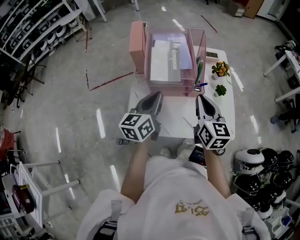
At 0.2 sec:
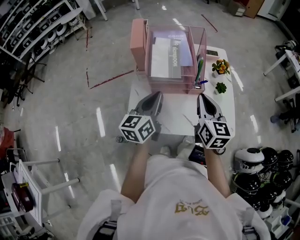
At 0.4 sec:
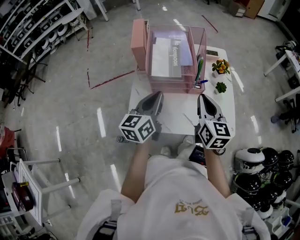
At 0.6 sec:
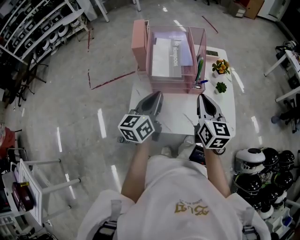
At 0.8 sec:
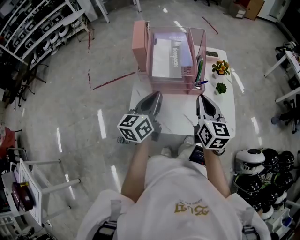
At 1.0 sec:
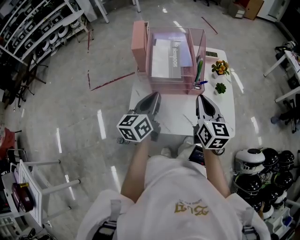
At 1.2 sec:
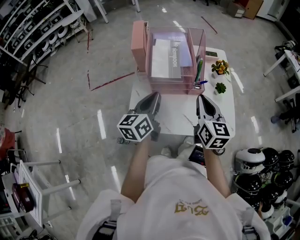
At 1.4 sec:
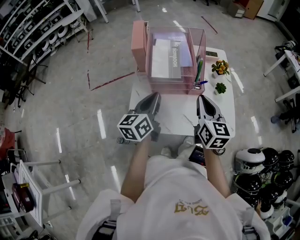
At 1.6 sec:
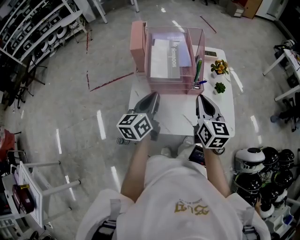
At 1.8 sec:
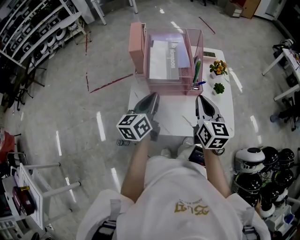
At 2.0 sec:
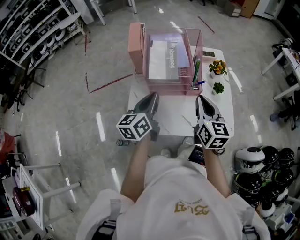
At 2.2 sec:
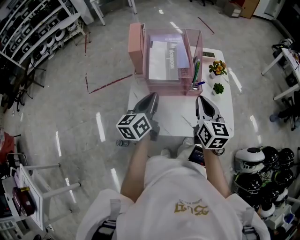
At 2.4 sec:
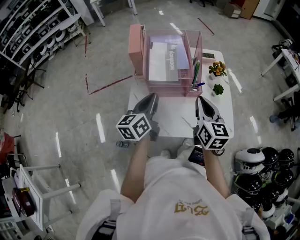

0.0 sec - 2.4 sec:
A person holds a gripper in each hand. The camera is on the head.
0.0 sec - 2.4 sec: The grippers move only a little.

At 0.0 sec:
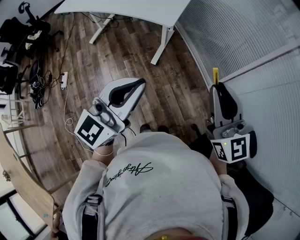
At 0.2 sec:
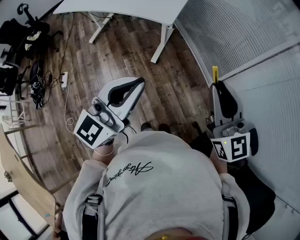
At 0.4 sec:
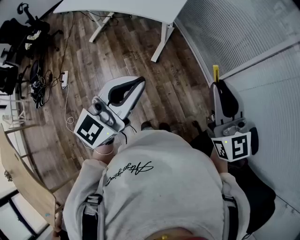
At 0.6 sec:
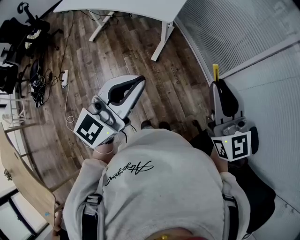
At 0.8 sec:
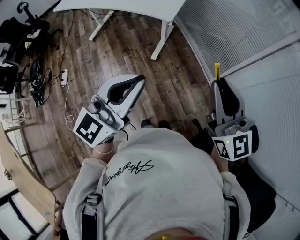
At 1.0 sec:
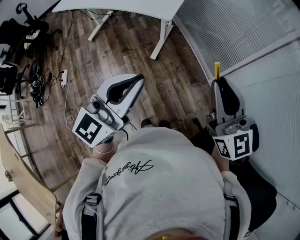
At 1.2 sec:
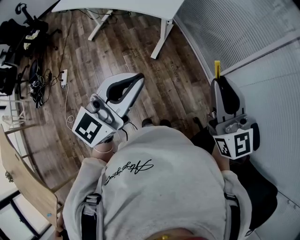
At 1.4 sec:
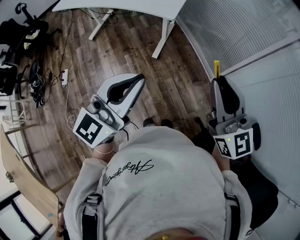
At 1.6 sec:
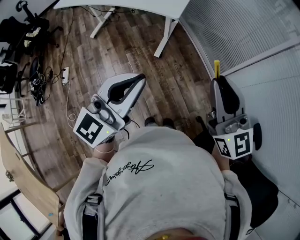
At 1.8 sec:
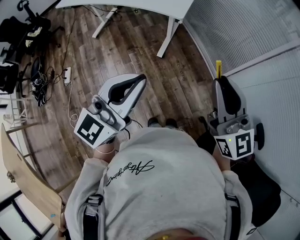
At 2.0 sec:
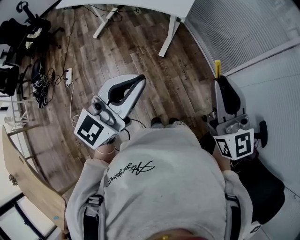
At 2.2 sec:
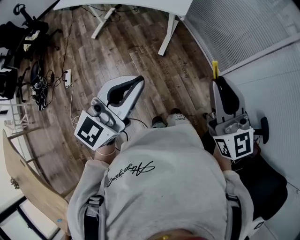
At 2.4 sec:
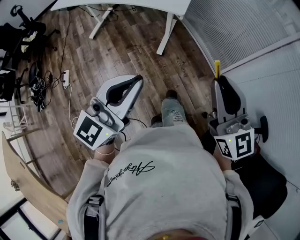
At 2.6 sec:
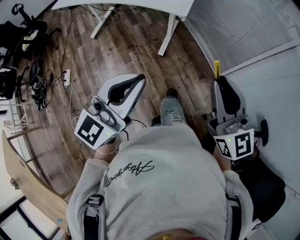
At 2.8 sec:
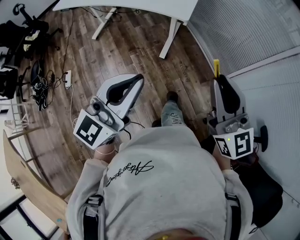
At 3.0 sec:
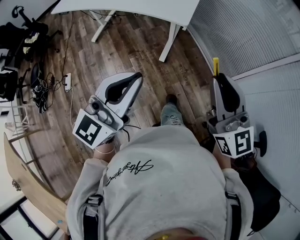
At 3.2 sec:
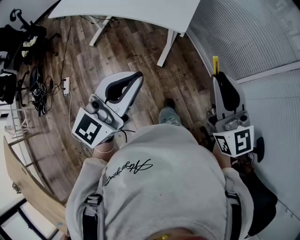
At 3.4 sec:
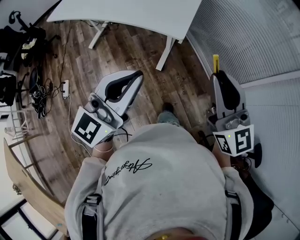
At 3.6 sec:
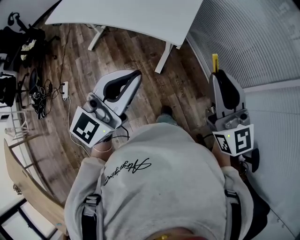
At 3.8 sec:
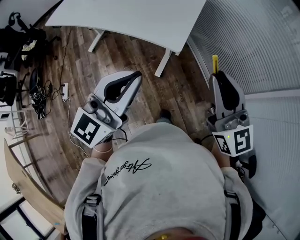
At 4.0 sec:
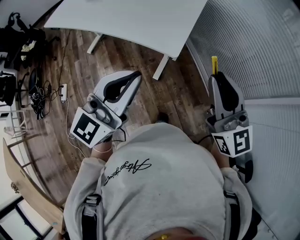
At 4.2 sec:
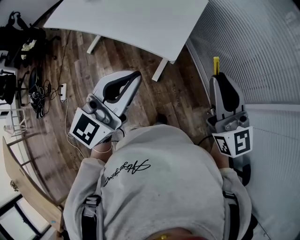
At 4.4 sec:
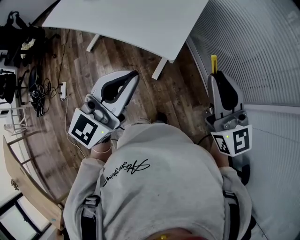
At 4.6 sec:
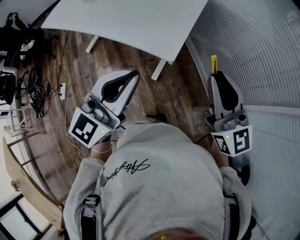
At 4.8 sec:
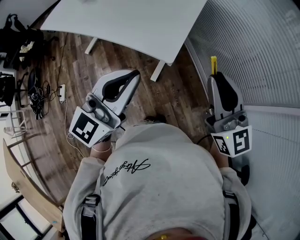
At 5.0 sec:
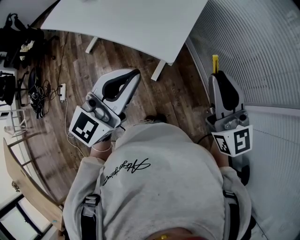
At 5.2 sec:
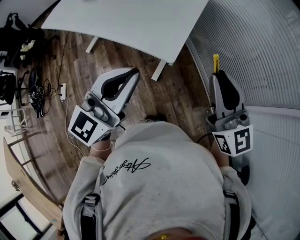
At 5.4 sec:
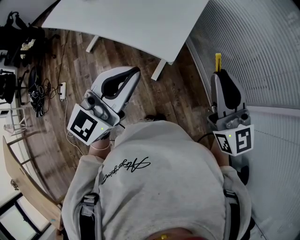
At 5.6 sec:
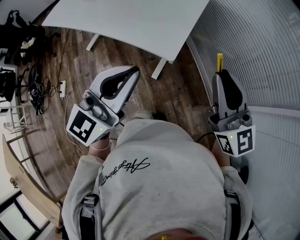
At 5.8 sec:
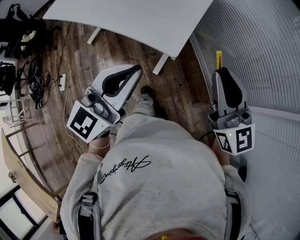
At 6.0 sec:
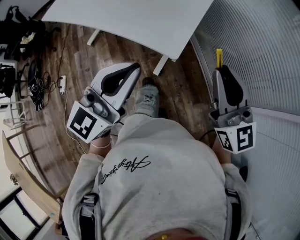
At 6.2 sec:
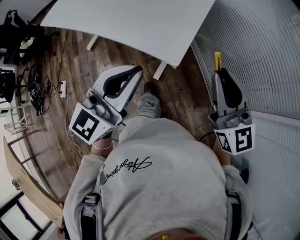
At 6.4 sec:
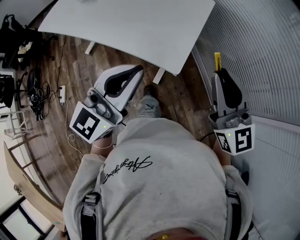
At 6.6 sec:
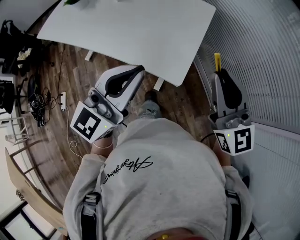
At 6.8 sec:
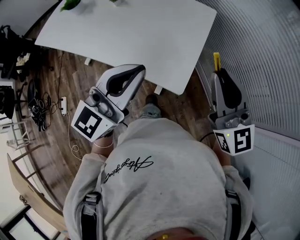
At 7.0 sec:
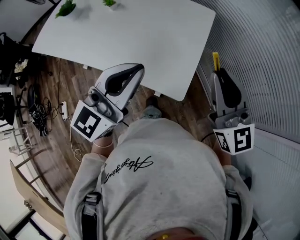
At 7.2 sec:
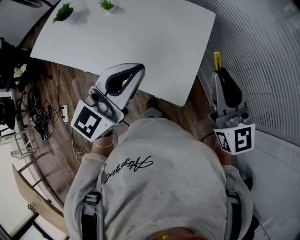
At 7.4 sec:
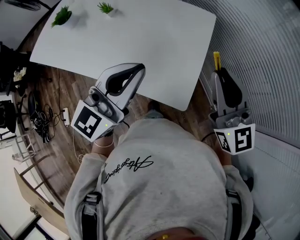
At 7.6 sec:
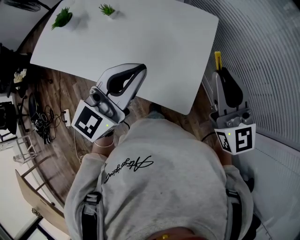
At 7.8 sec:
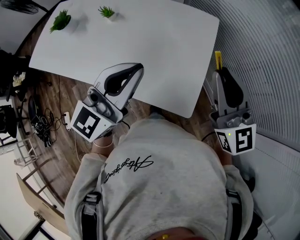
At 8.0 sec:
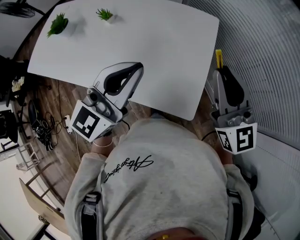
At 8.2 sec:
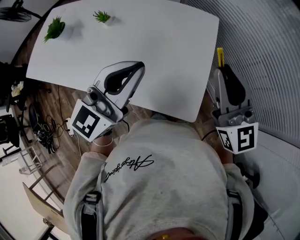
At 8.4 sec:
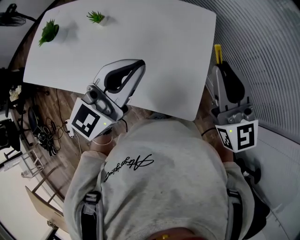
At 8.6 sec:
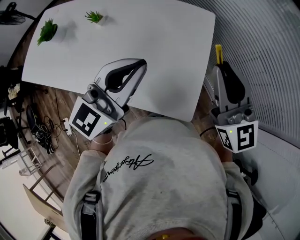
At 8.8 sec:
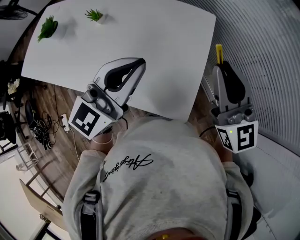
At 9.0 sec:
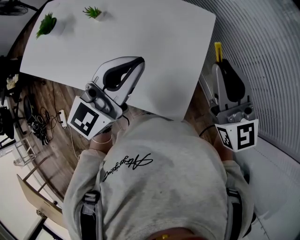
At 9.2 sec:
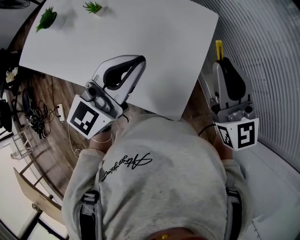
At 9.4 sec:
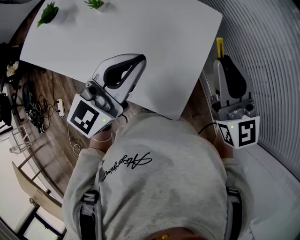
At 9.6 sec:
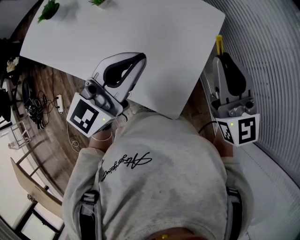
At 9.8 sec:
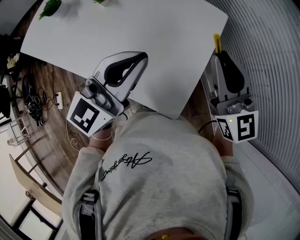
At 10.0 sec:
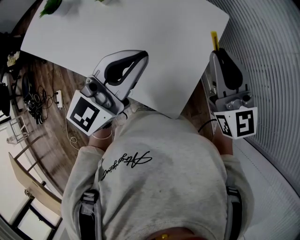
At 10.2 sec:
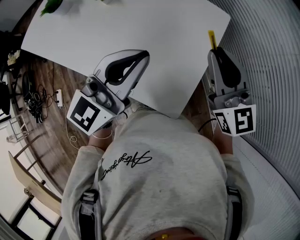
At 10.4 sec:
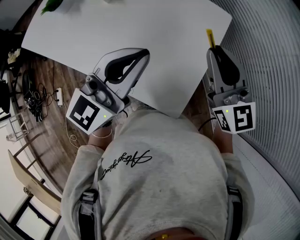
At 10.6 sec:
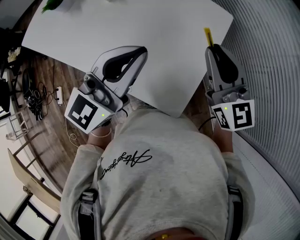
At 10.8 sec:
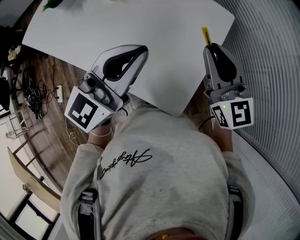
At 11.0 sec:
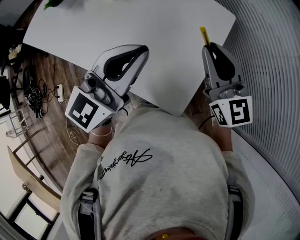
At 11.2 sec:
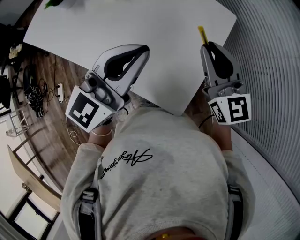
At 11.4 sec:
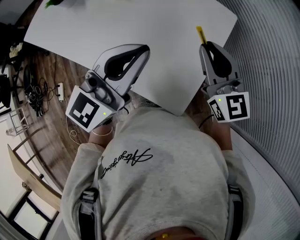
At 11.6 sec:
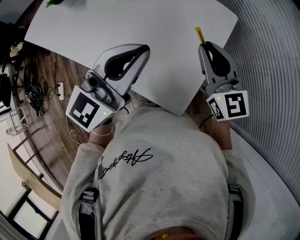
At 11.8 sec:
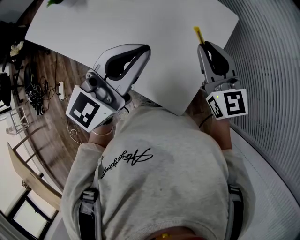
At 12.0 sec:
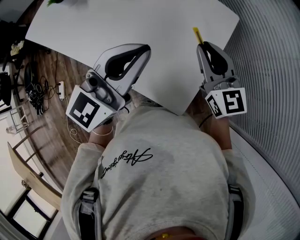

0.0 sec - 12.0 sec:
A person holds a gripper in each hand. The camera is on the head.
0.0 sec - 1.6 sec: The grippers make only small movements.
1.6 sec - 3.0 sec: The grippers both shift forward and to the left by roughly 10 cm.
3.0 sec - 4.4 sec: Both grippers travel together forward, some 25 cm.
4.4 sec - 6.0 sec: The right gripper moves approximately 5 cm.
6.0 sec - 7.6 sec: The left gripper is displaced forward by approximately 25 cm, while the right gripper travels forward and to the left by some 25 cm.
7.6 sec - 9.0 sec: Both grippers travel together forward, about 10 cm.
9.0 sec - 10.4 sec: The right gripper shifts by about 5 cm.
10.4 sec - 12.0 sec: The right gripper goes some 10 cm downward.

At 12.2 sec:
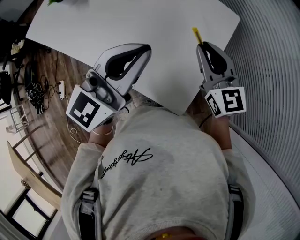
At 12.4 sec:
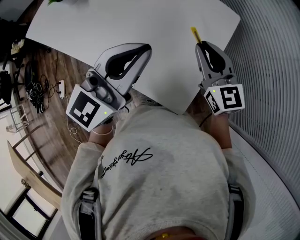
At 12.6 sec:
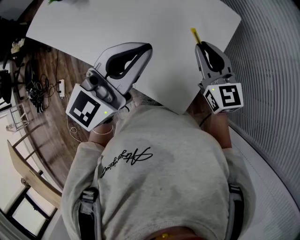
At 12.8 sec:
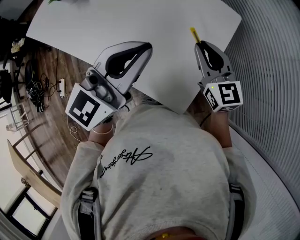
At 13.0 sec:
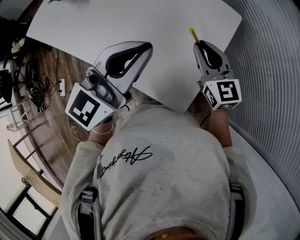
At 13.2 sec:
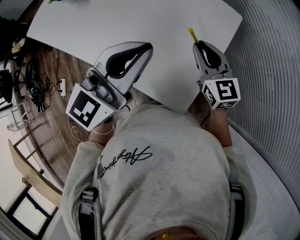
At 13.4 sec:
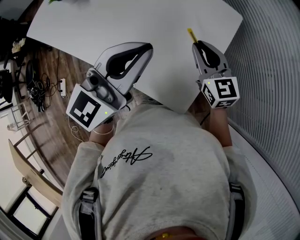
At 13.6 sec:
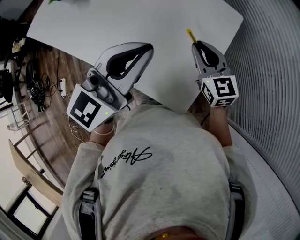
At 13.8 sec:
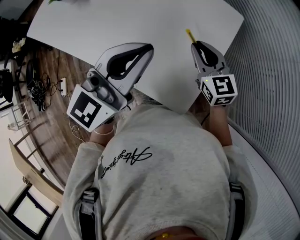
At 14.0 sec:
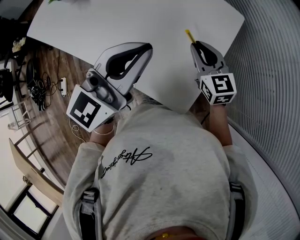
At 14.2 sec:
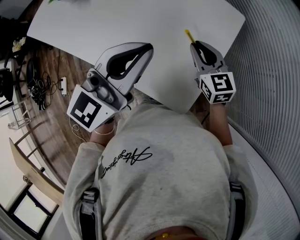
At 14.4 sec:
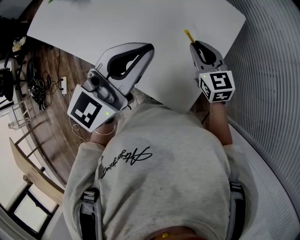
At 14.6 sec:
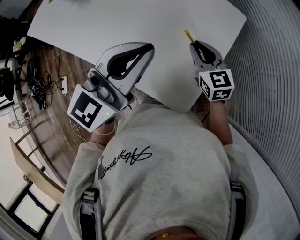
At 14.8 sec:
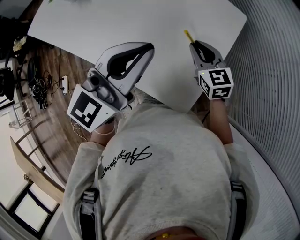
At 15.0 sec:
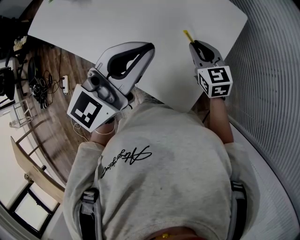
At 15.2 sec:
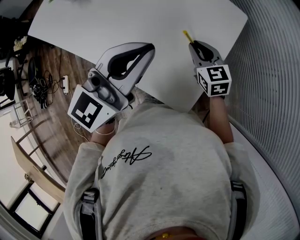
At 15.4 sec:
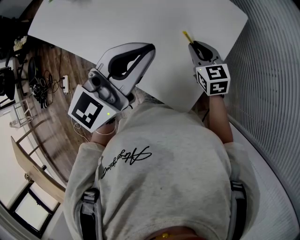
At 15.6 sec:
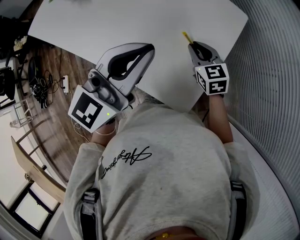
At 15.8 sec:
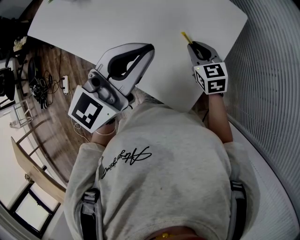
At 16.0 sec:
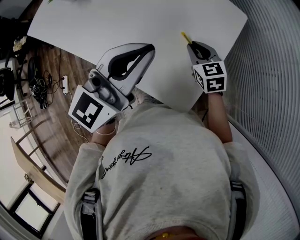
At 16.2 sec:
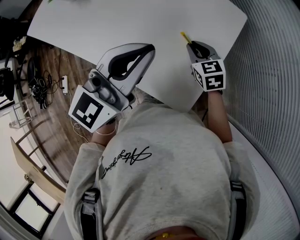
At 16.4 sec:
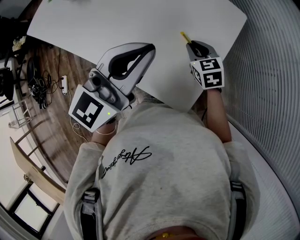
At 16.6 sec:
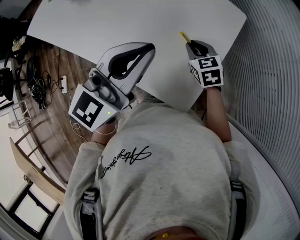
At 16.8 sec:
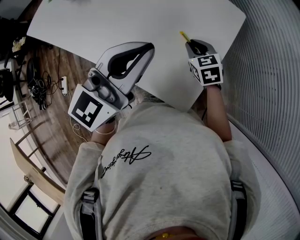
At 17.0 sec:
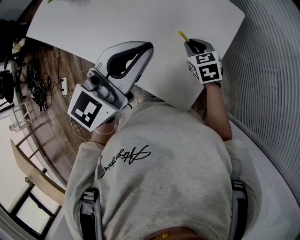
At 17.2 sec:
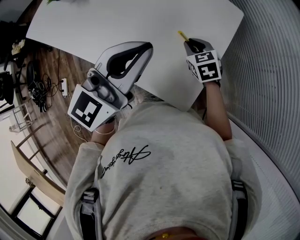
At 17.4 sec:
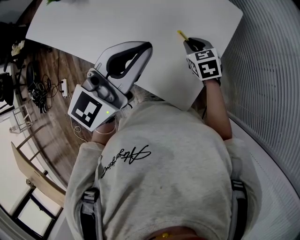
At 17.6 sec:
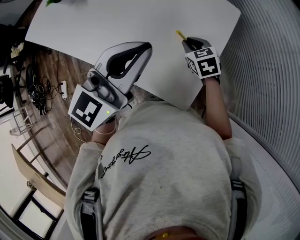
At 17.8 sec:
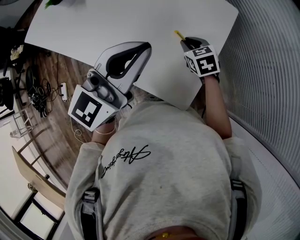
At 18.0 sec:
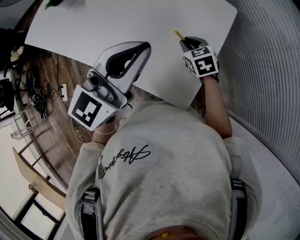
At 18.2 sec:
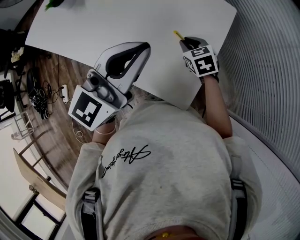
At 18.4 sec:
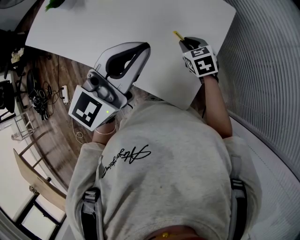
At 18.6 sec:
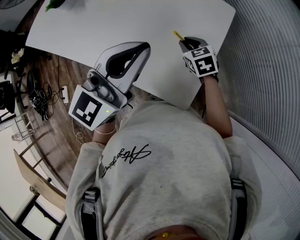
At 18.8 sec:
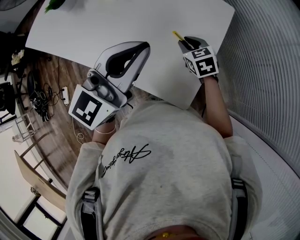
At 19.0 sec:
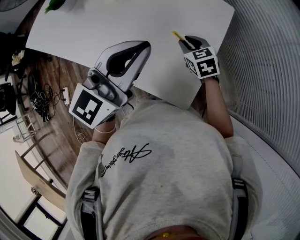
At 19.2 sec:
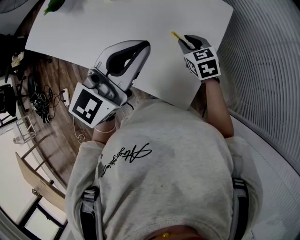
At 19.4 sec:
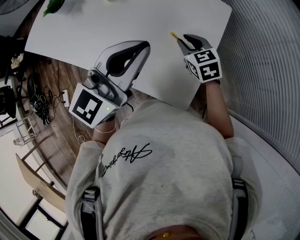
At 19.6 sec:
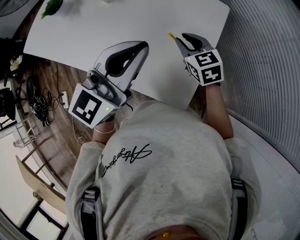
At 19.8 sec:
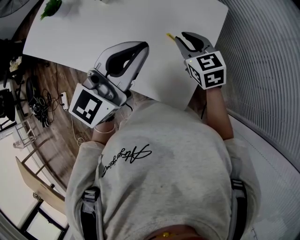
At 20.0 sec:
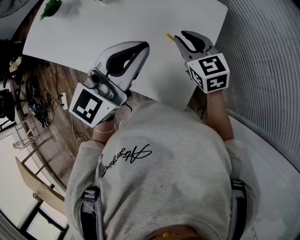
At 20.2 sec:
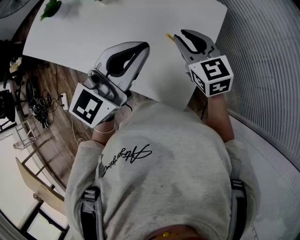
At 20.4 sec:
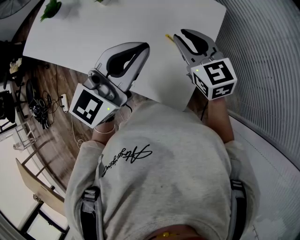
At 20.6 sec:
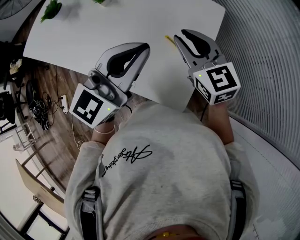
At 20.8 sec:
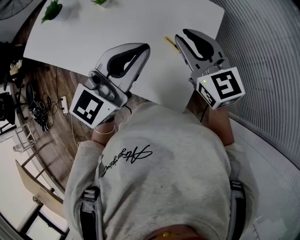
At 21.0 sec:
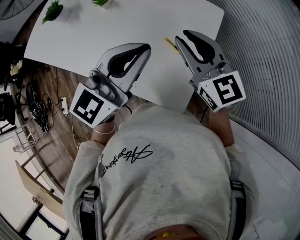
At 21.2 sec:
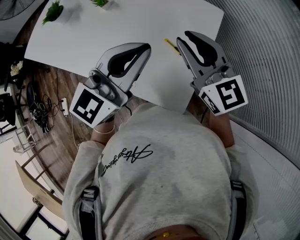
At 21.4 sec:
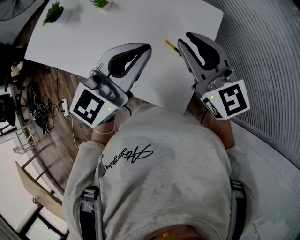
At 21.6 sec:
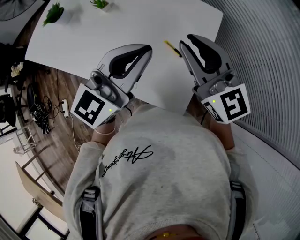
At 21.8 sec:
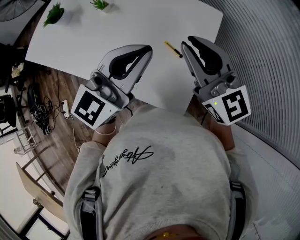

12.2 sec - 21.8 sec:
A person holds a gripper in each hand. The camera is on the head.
12.2 sec - 13.8 sec: The right gripper shifts about 5 cm downward.
13.8 sec - 15.4 sec: The right gripper goes roughly 5 cm downward.
15.4 sec - 17.0 sec: There are only small adjustments of the grippers.
17.0 sec - 18.6 sec: Both grippers stay about where they are.
18.6 sec - 20.2 sec: The right gripper shifts some 15 cm upward, and swivels roughly 20 degrees.
20.2 sec - 21.8 sec: The right gripper travels upward and backward by approximately 15 cm, and rotates some 30 degrees.
